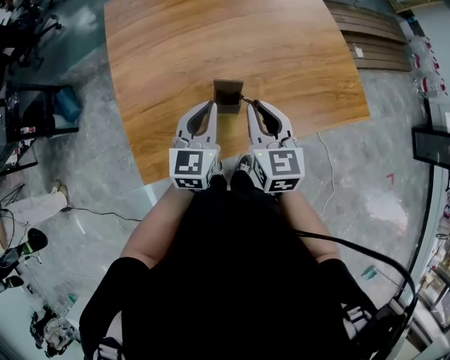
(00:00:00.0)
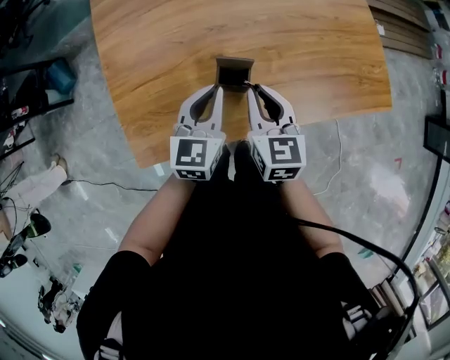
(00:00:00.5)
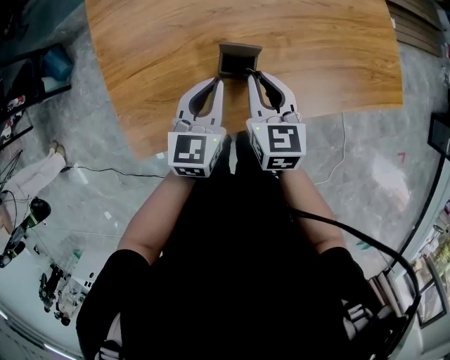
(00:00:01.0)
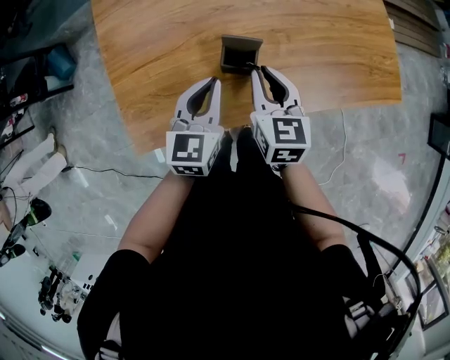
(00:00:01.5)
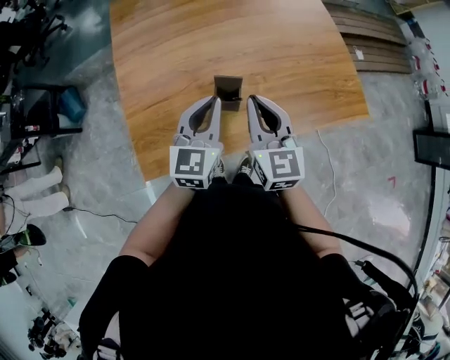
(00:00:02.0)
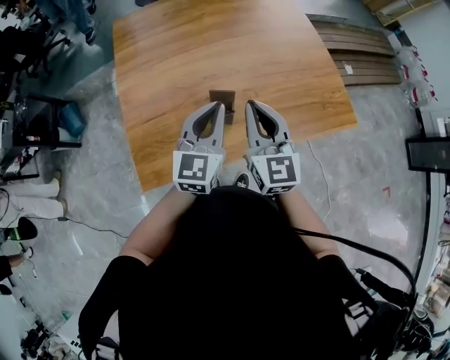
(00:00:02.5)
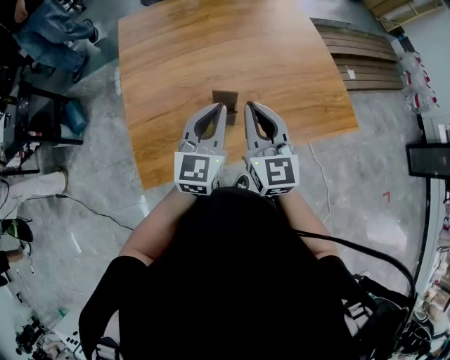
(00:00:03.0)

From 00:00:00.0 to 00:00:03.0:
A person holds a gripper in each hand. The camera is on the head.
From 00:00:00.0 to 00:00:01.5: The grippers both shift downward by roughly 10 cm.
From 00:00:01.5 to 00:00:03.0: Both grippers travel together upward, approximately 20 cm. The left gripper turns by some 20 degrees. Meanwhile the right gripper swivels some 30 degrees.

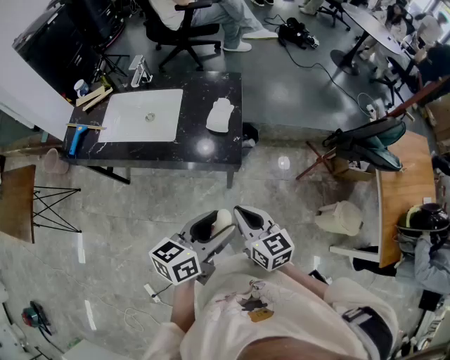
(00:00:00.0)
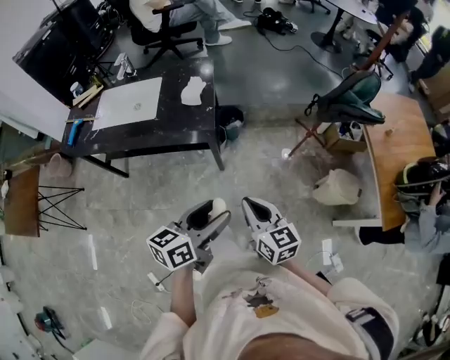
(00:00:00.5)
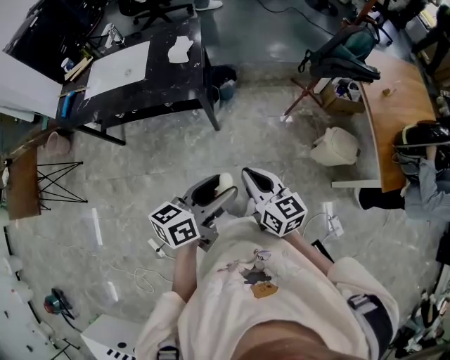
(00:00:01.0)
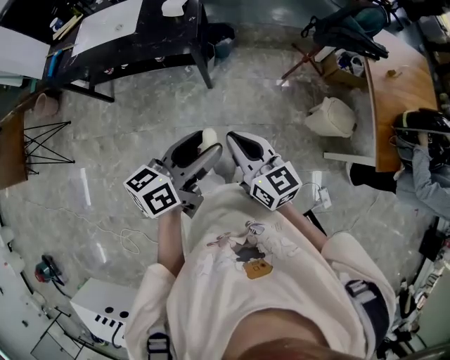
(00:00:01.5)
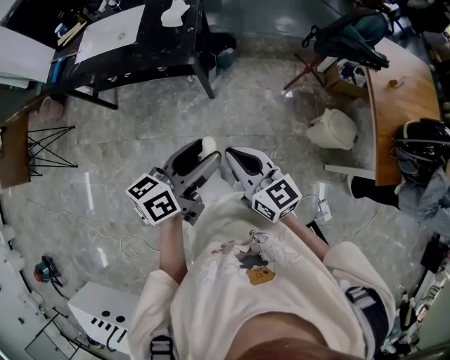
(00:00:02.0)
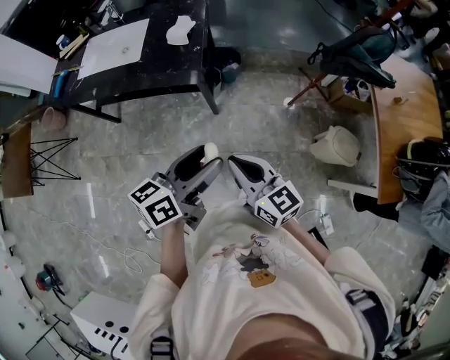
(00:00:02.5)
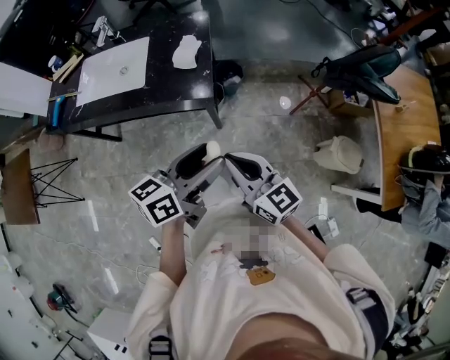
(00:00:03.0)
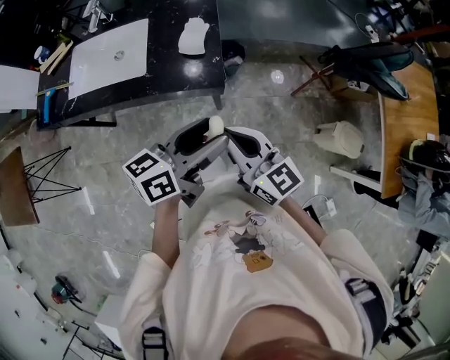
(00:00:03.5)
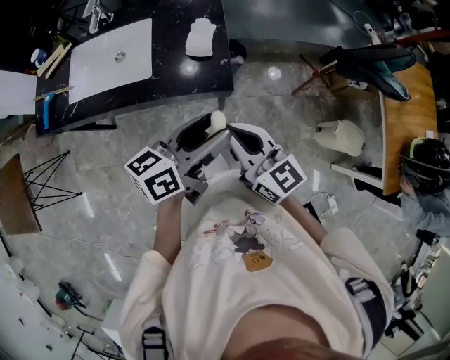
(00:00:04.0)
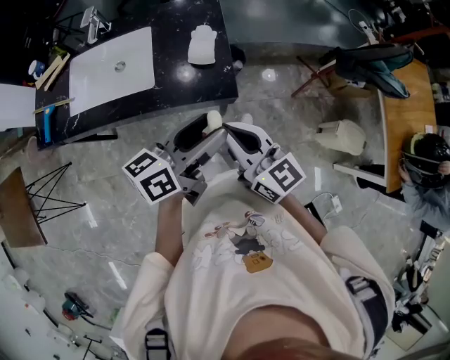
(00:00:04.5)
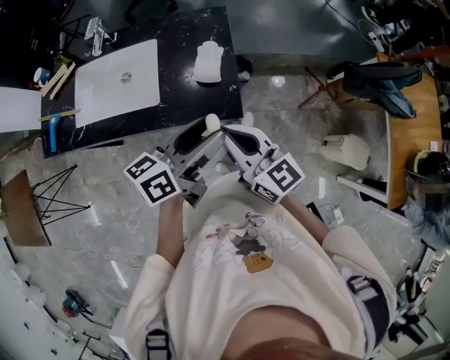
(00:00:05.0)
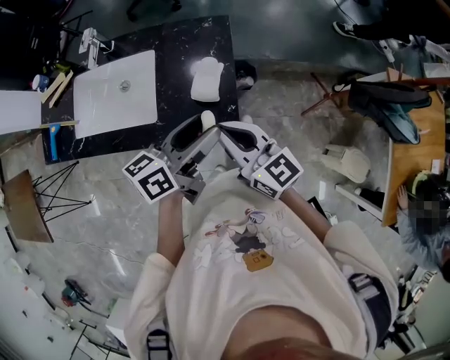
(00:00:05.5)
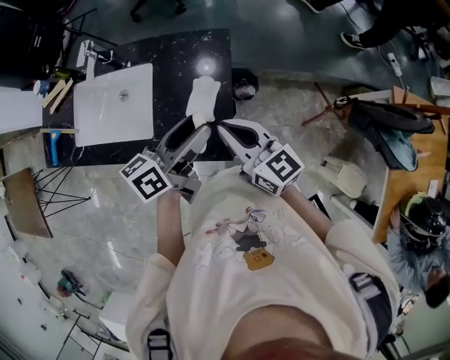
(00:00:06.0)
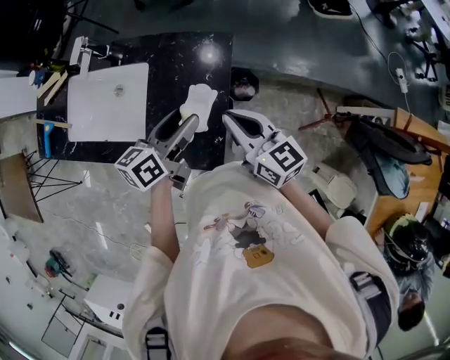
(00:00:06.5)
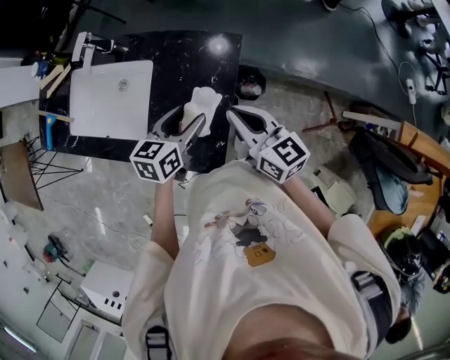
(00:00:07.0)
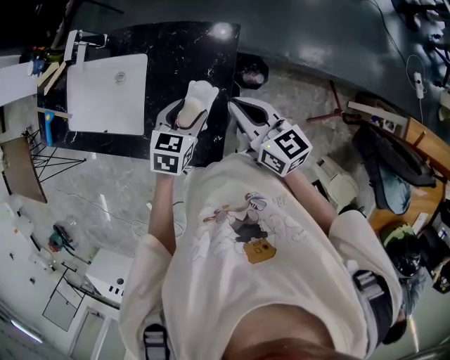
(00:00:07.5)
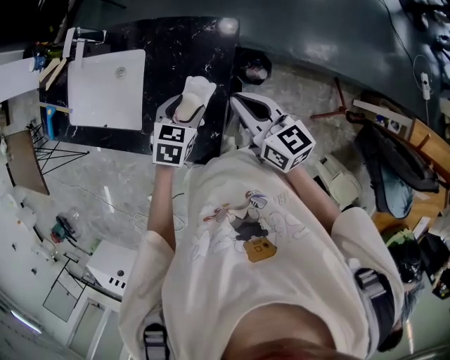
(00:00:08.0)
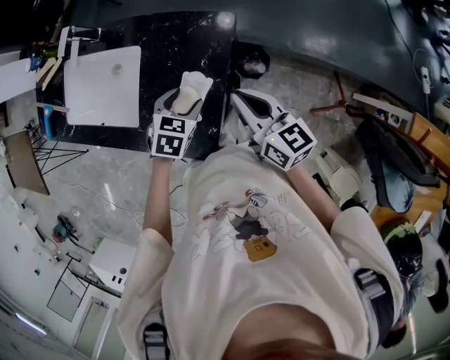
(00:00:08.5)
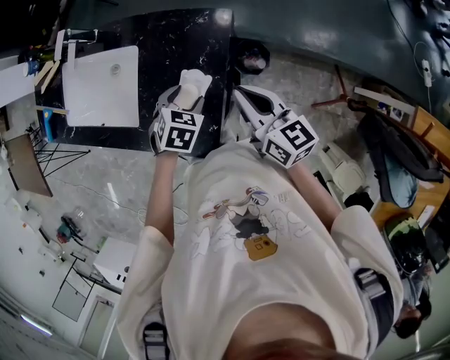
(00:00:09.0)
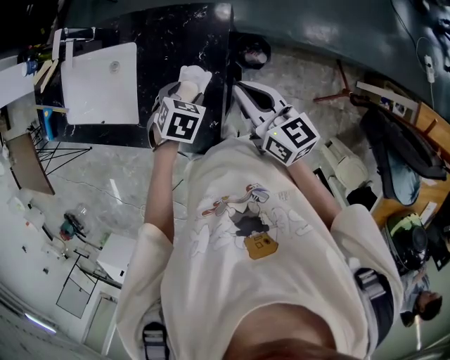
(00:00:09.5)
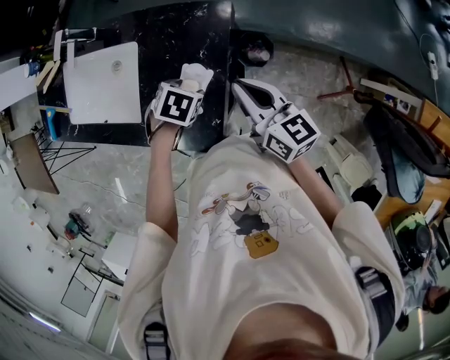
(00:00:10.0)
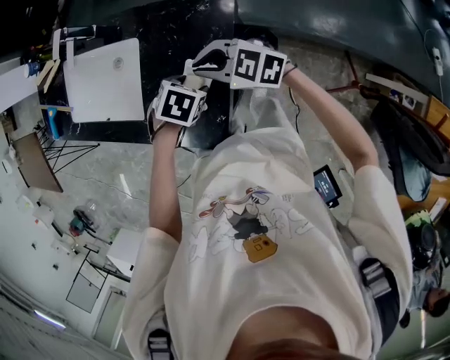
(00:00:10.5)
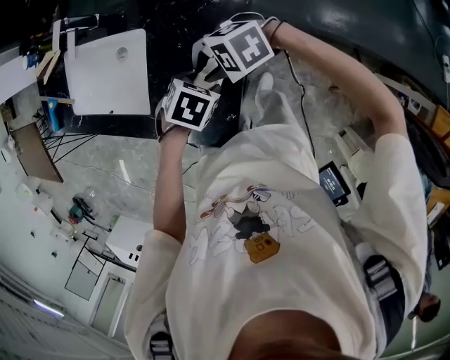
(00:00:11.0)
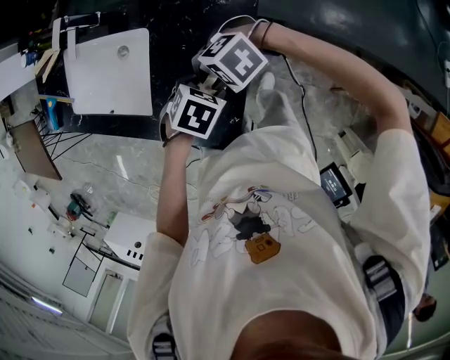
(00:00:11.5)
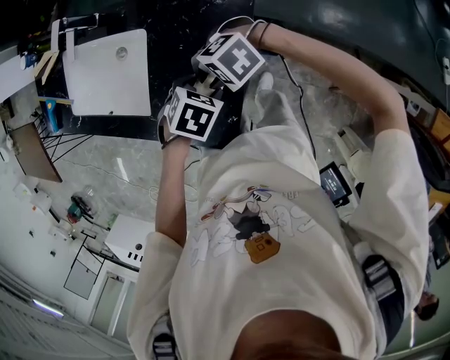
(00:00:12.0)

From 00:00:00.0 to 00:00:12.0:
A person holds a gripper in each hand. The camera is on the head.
From 00:00:00.0 to 00:00:02.0: The two grippers go about 30 cm backward and to the right.
From 00:00:02.0 to 00:00:04.0: The two grippers go some 35 cm forward and to the left.
From 00:00:04.0 to 00:00:06.0: Both grippers travel together forward, some 30 cm.
From 00:00:06.0 to 00:00:08.0: The left gripper is displaced downward and forward by some 20 cm, and angles its fingers downward, by about 50 degrees. The right gripper heads forward, to the right and downward, covering roughly 20 cm.
From 00:00:08.0 to 00:00:10.0: The left gripper rotates some 30 degrees.
From 00:00:10.0 to 00:00:12.0: The right gripper moves about 15 cm, and points its fingers some 30 degrees further downward.

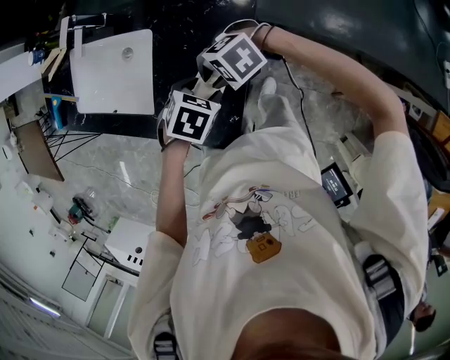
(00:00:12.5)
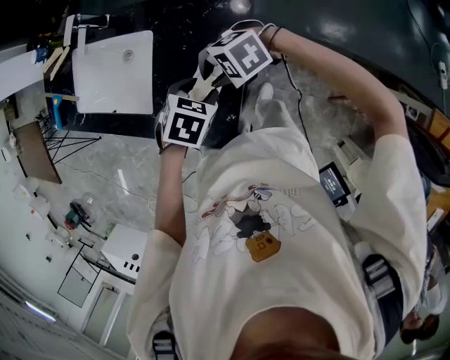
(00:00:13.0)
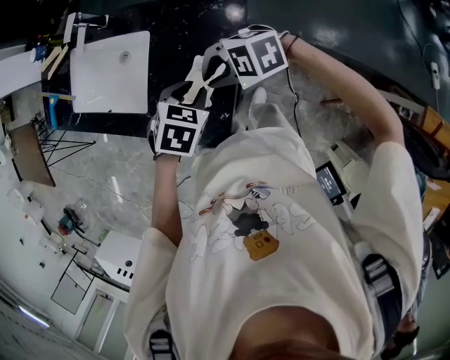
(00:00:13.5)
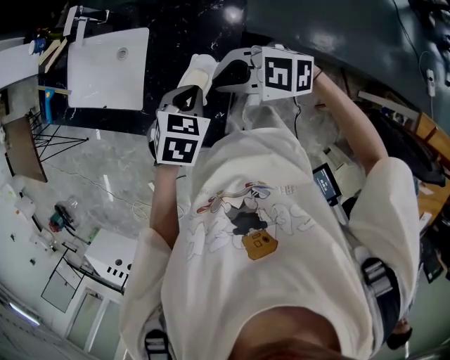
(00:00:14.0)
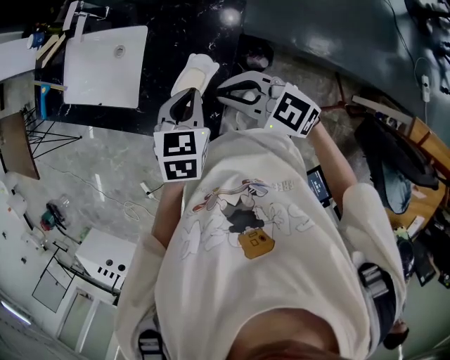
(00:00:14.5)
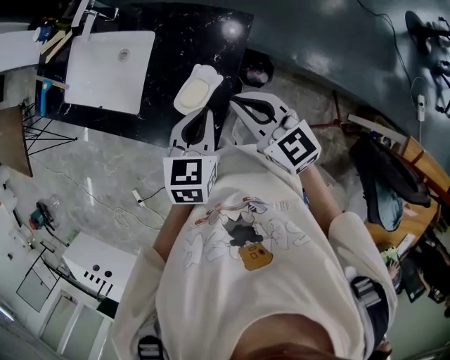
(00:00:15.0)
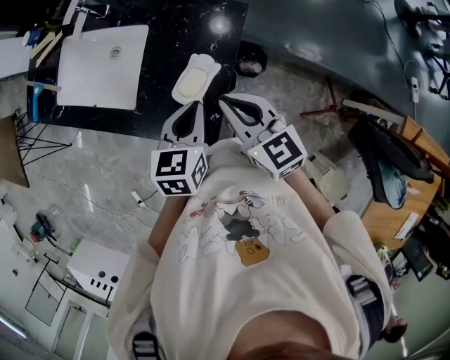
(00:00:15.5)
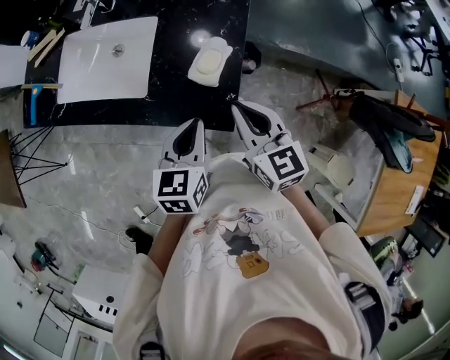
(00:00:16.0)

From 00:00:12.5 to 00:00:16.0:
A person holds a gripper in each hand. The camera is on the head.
From 00:00:12.5 to 00:00:14.5: Both grippers travel together upward, roughly 10 cm. The left gripper changes its angle by roughly 40 degrees, and closes up; the right gripper rotates some 60 degrees.
From 00:00:14.5 to 00:00:16.0: The right gripper moves roughly 15 cm, and swivels approximately 50 degrees. Meanwhile the left gripper ends up roughly 20 cm from where it was, and swivels some 20 degrees.

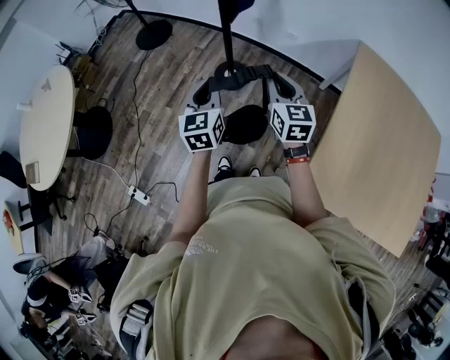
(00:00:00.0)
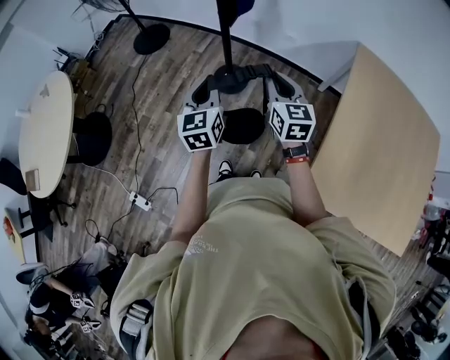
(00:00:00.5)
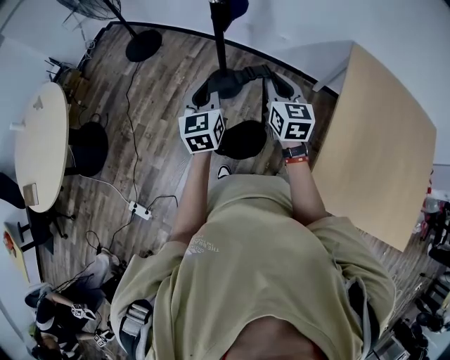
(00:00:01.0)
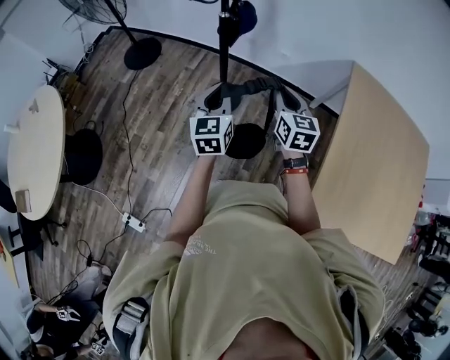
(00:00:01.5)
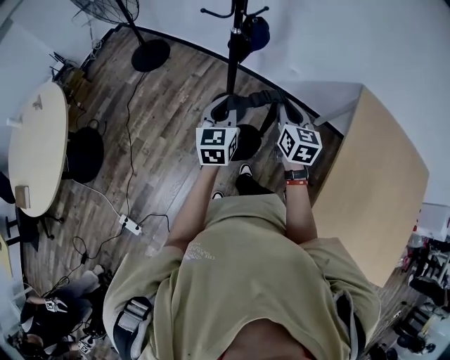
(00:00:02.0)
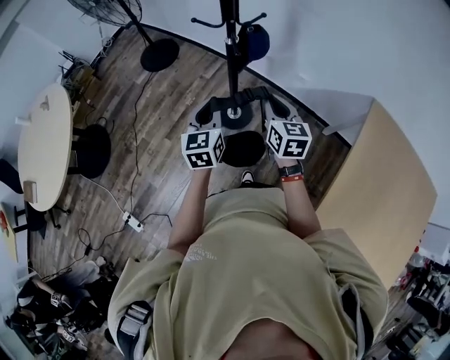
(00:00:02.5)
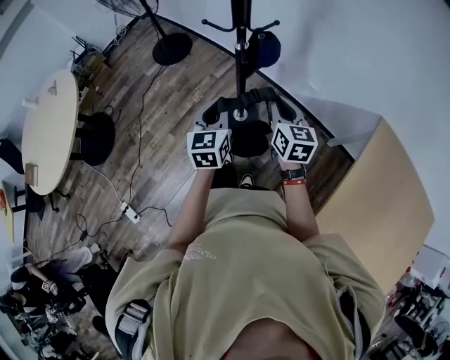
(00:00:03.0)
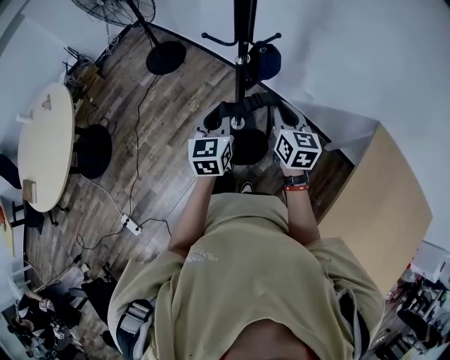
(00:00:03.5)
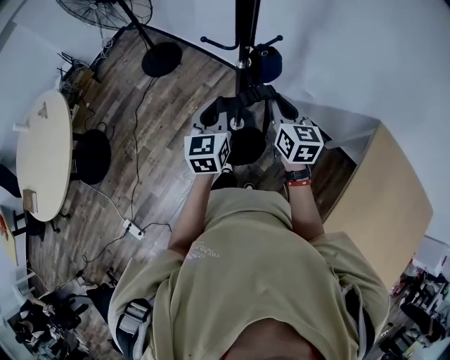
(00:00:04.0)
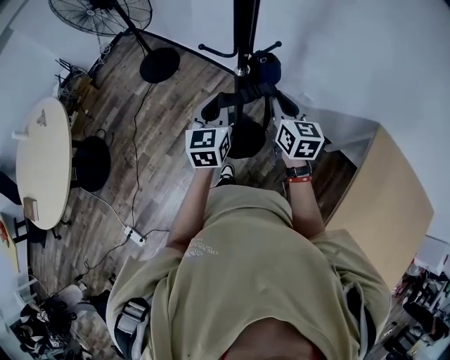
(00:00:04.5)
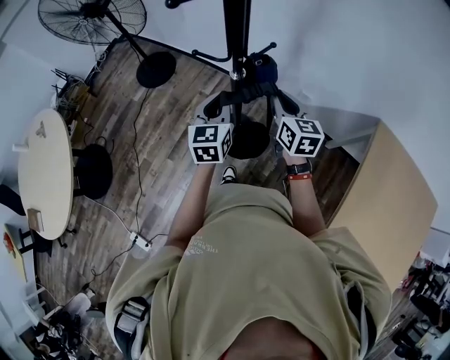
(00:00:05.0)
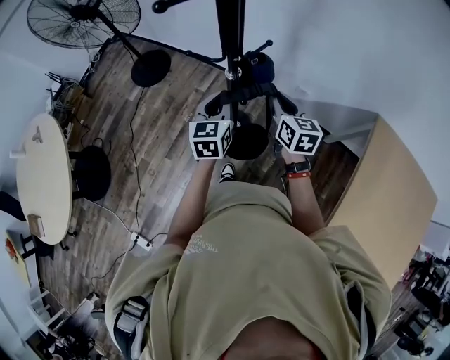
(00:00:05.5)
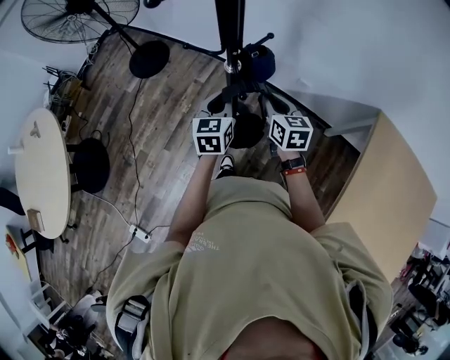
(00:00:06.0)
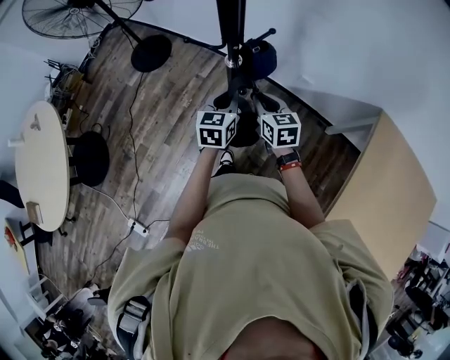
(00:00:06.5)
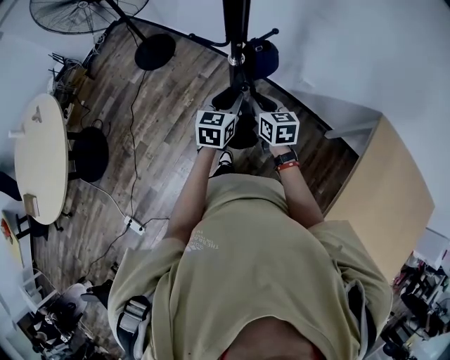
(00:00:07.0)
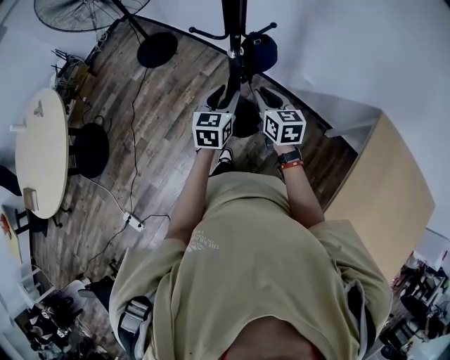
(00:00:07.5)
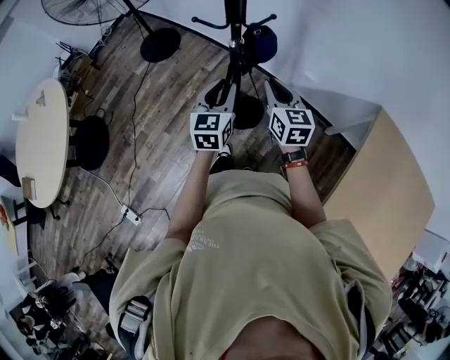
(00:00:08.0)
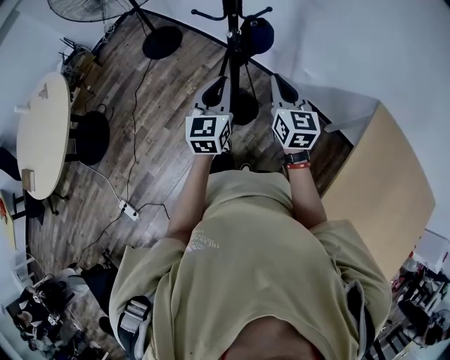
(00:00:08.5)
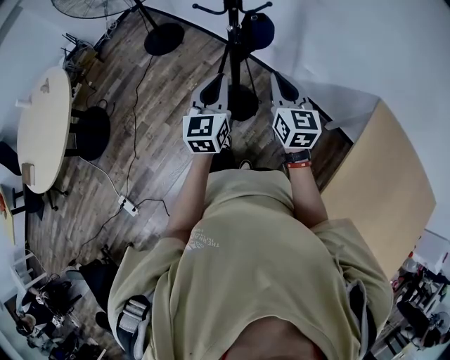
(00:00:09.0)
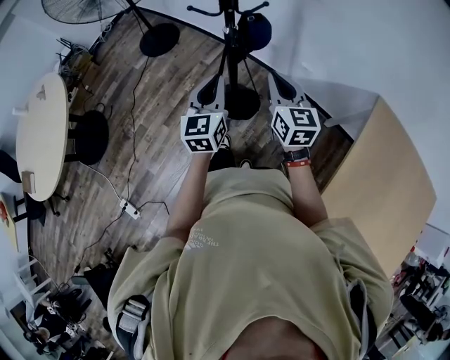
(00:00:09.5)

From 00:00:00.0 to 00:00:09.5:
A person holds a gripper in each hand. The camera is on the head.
From 00:00:00.0 to 00:00:02.0: The two grippers go about 20 cm forward.
From 00:00:02.0 to 00:00:04.0: Both grippers travel together forward, approximately 20 cm.
From 00:00:04.0 to 00:00:05.5: Both grippers travel together forward, roughly 10 cm.
From 00:00:05.5 to 00:00:07.5: Both grippers travel together backward, roughly 5 cm. The left gripper opens up.
From 00:00:07.5 to 00:00:09.5: Both grippers travel together backward and upward, approximately 15 cm. The left gripper closes its fingers.
